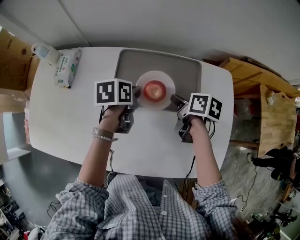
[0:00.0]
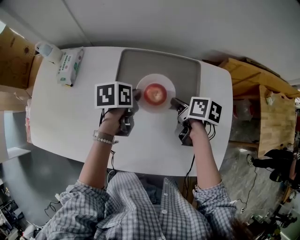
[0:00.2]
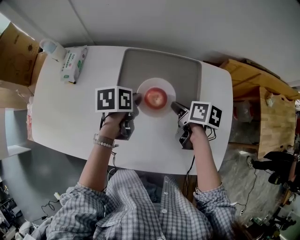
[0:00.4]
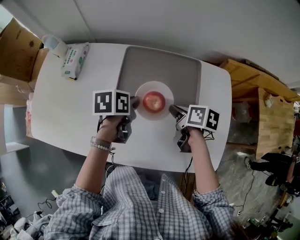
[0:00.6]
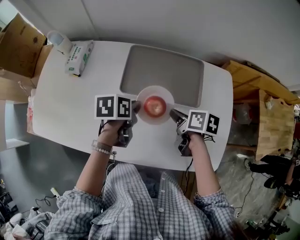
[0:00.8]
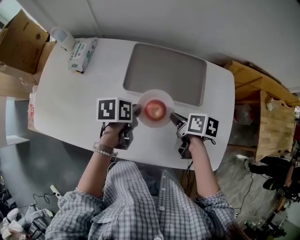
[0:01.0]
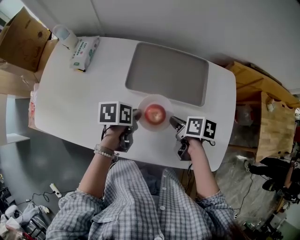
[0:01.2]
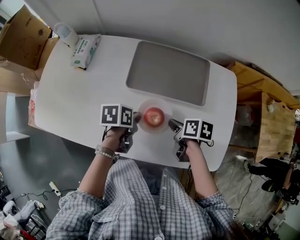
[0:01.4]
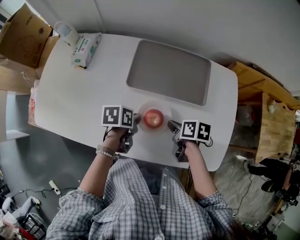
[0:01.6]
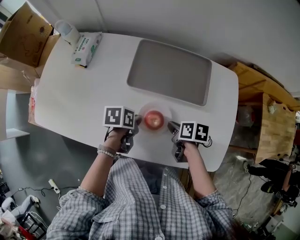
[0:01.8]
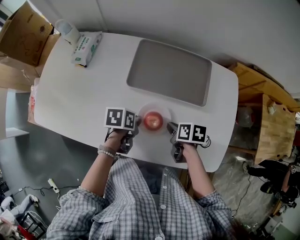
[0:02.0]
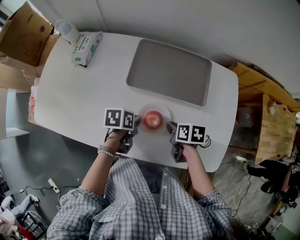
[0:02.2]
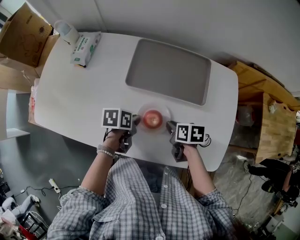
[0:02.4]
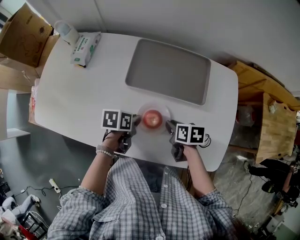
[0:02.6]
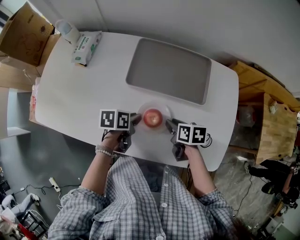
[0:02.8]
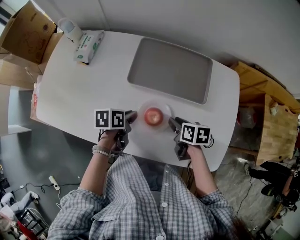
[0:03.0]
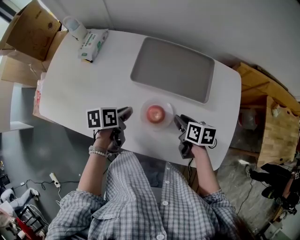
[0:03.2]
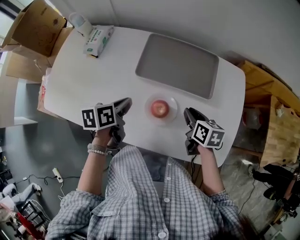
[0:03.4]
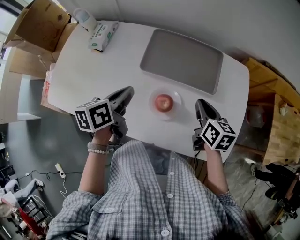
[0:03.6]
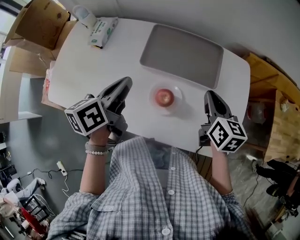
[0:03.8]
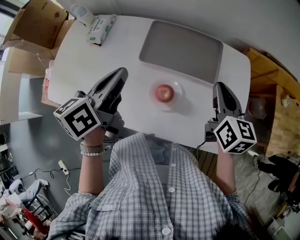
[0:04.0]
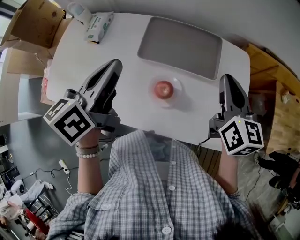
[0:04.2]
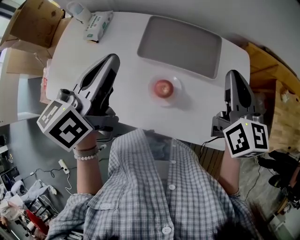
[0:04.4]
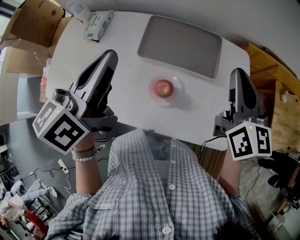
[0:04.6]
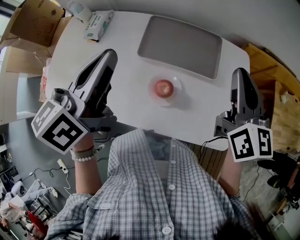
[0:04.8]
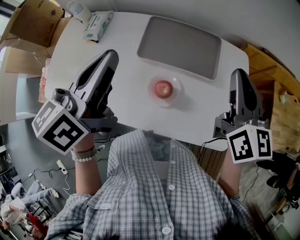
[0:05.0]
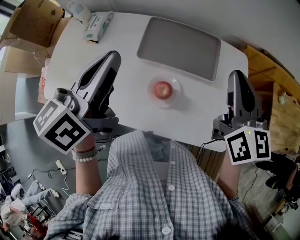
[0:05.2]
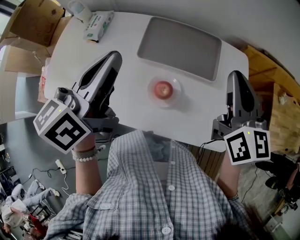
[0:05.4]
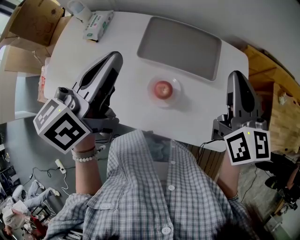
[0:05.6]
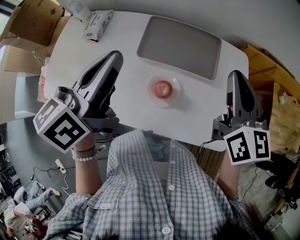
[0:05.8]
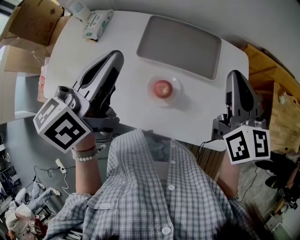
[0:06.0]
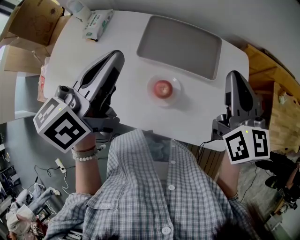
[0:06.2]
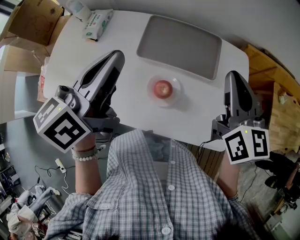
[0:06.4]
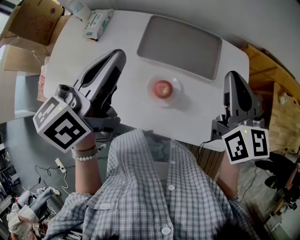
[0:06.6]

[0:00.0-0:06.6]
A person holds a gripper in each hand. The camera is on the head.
0:00.0 to 0:01.6: Both grippers travel together backward, approximately 15 cm.
0:01.6 to 0:03.2: The left gripper moves approximately 5 cm.
0:03.2 to 0:05.0: The two grippers go approximately 30 cm upward. The right gripper points its fingers roughly 40 degrees further upward; the left gripper tilts its fingers about 40 degrees upward.
0:05.0 to 0:06.6: There are only small adjustments of the grippers.

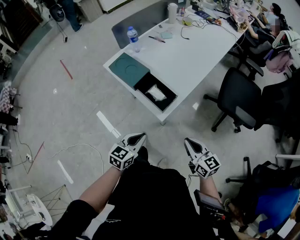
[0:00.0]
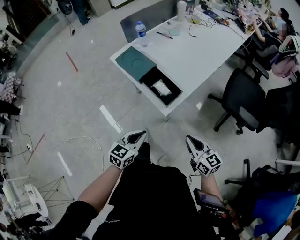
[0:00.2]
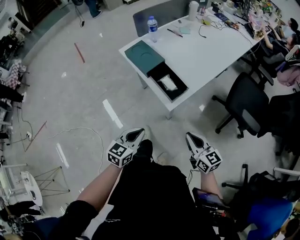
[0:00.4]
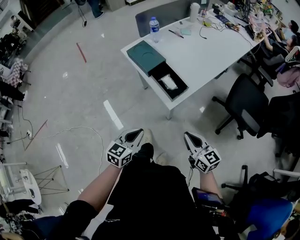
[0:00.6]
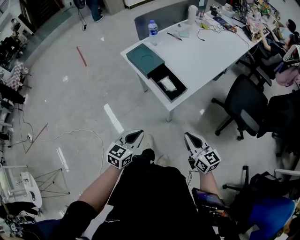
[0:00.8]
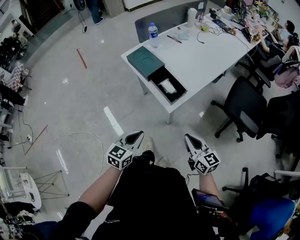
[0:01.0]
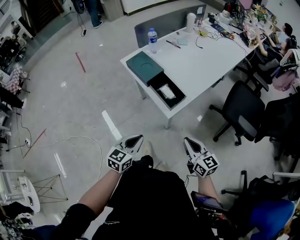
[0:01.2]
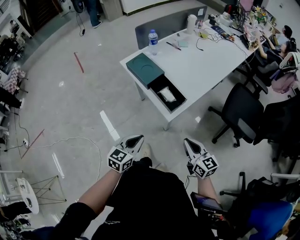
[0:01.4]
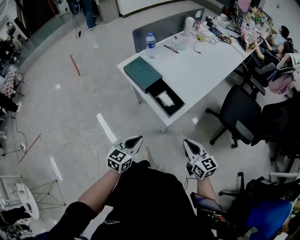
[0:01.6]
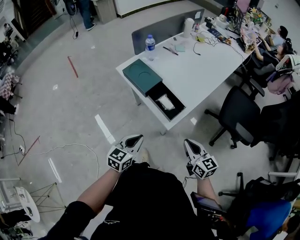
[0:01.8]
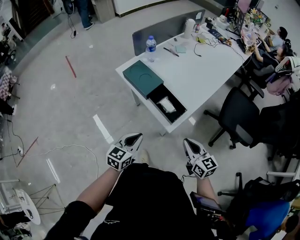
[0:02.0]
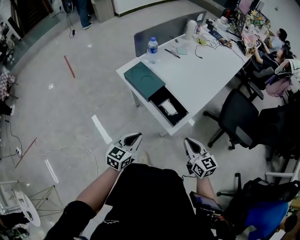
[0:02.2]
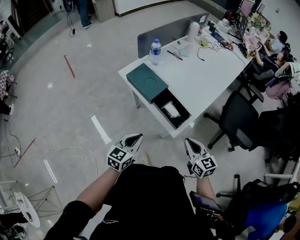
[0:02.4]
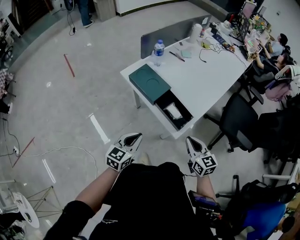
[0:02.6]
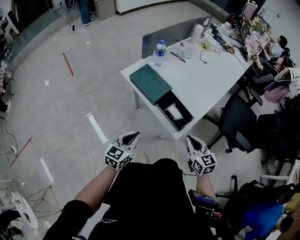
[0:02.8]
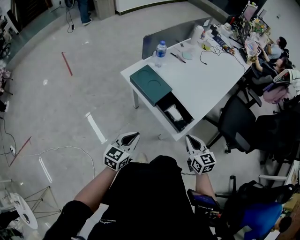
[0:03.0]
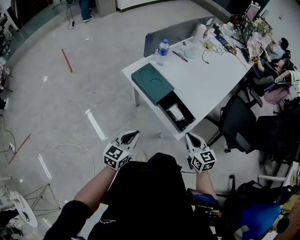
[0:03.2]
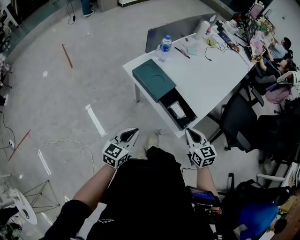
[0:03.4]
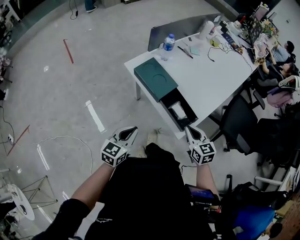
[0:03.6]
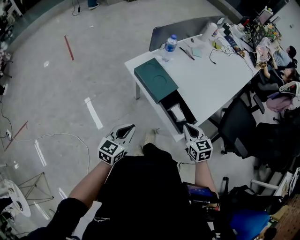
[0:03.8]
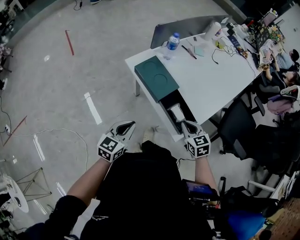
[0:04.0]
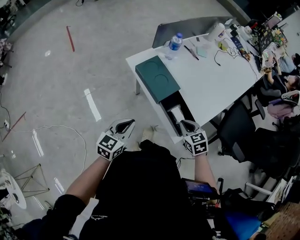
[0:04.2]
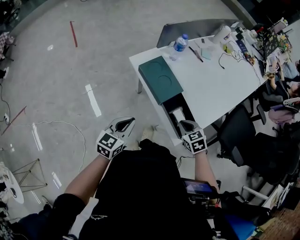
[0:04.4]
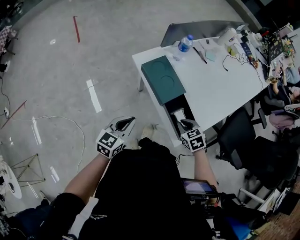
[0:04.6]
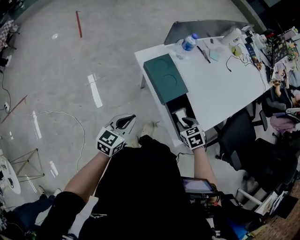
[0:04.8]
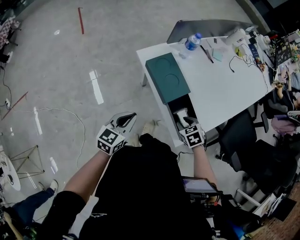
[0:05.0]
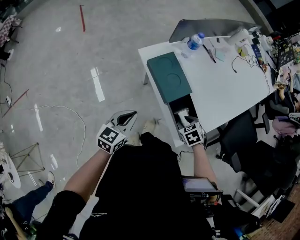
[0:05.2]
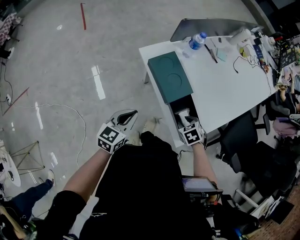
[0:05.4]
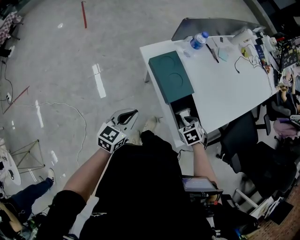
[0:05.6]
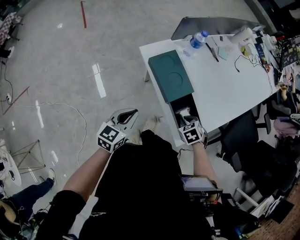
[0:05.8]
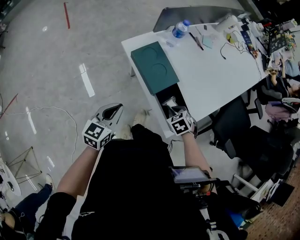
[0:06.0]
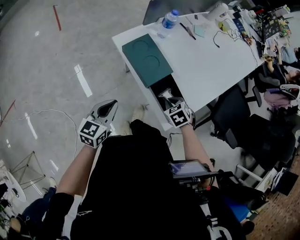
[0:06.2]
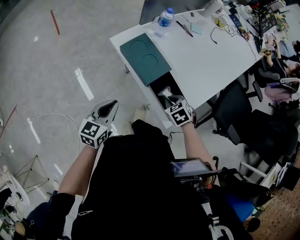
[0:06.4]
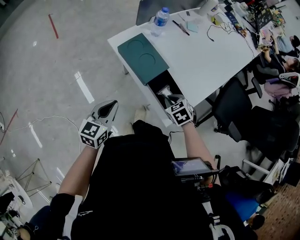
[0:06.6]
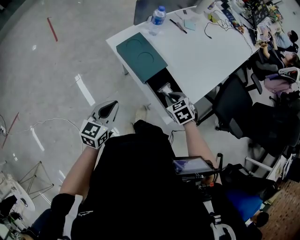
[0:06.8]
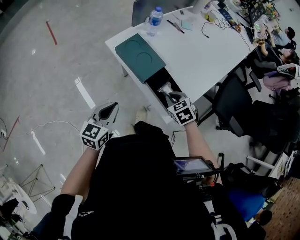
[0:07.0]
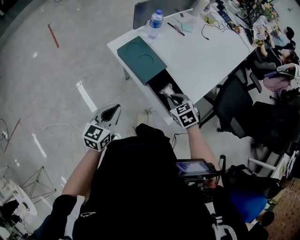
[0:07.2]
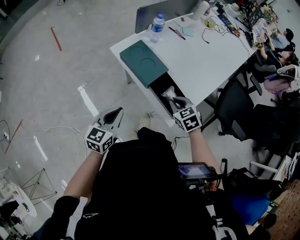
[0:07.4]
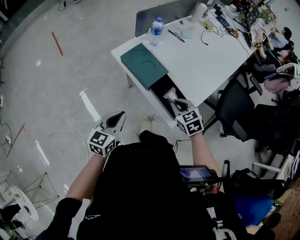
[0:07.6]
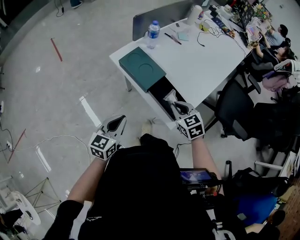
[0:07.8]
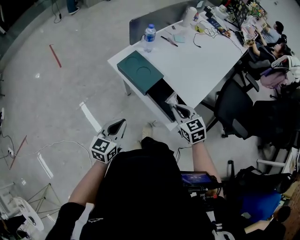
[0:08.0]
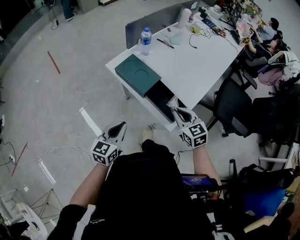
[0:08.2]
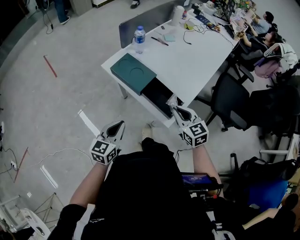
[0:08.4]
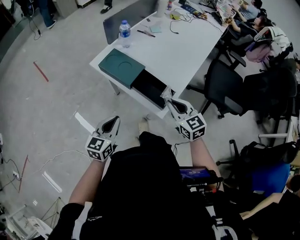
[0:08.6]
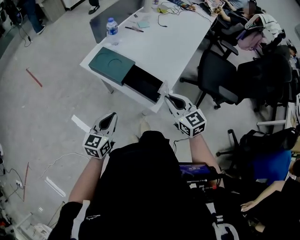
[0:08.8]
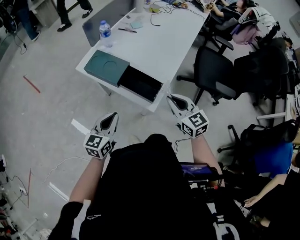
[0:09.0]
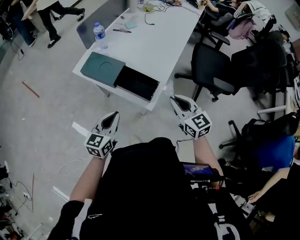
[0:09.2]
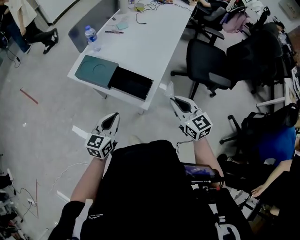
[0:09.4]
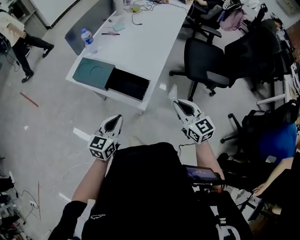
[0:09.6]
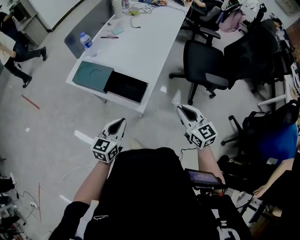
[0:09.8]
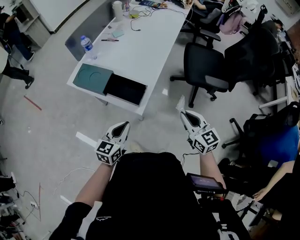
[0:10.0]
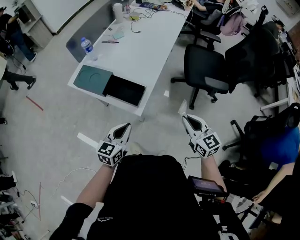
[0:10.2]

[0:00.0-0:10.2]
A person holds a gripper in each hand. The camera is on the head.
0:00.0 to 0:01.4: The left gripper ends up some 5 cm from where it was.
0:01.4 to 0:03.0: The two grippers go some 15 cm forward and to the left.
0:03.0 to 0:04.4: The left gripper shifts about 5 cm forward, while the right gripper travels forward and downward by some 15 cm, and changes its angle by about 40 degrees.
0:04.4 to 0:05.8: The right gripper heads downward, covering some 5 cm, swivels about 20 degrees, and opens, then closes once more.
0:05.8 to 0:07.2: The right gripper moves upward, about 5 cm, and turns by about 20 degrees.
0:07.2 to 0:08.8: The right gripper goes some 15 cm upward, backward and to the right, and points its fingers about 30 degrees further upward; the left gripper shifts by approximately 5 cm.
0:08.8 to 0:10.2: The right gripper goes some 20 cm to the right and backward. The left gripper moves to the right, some 15 cm.

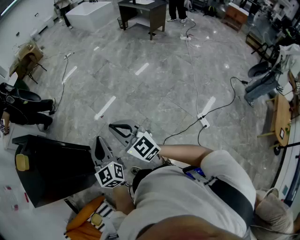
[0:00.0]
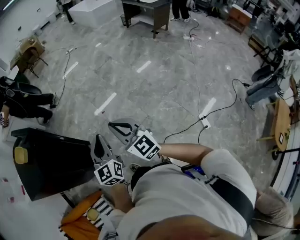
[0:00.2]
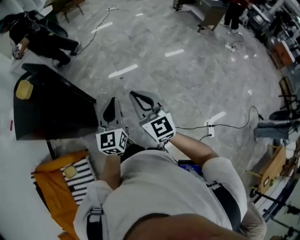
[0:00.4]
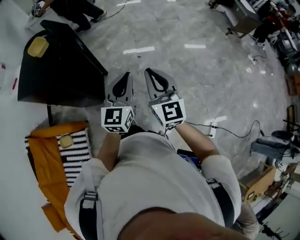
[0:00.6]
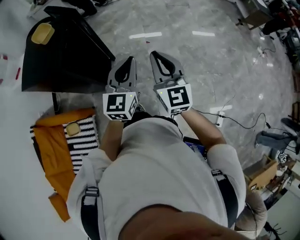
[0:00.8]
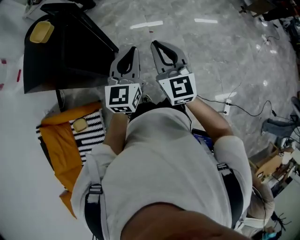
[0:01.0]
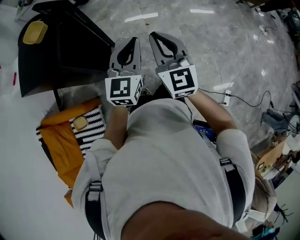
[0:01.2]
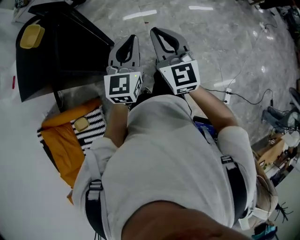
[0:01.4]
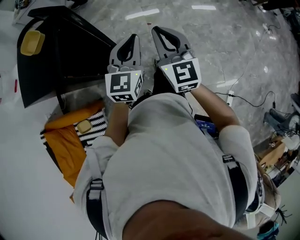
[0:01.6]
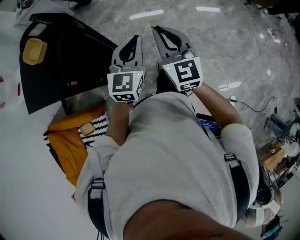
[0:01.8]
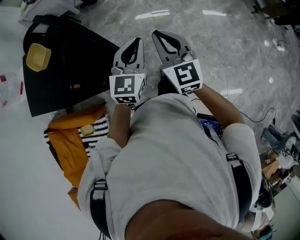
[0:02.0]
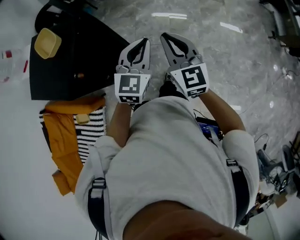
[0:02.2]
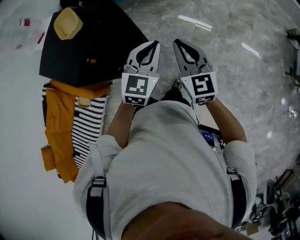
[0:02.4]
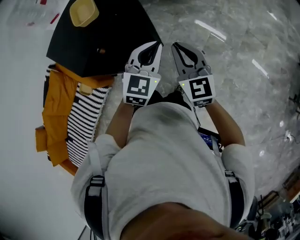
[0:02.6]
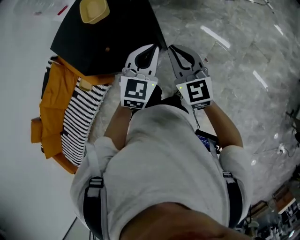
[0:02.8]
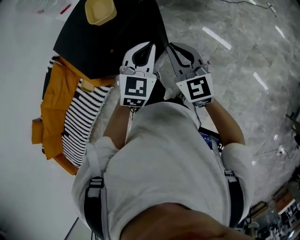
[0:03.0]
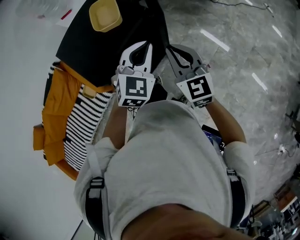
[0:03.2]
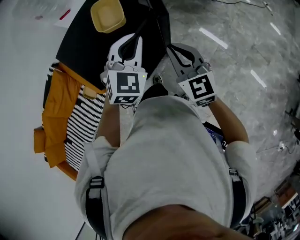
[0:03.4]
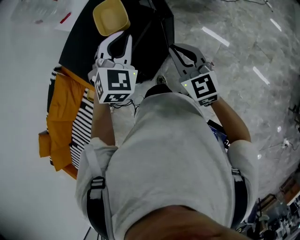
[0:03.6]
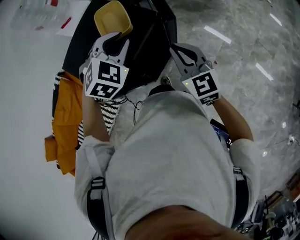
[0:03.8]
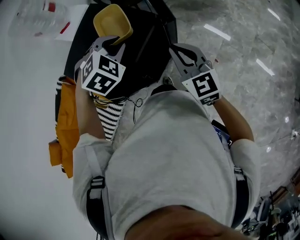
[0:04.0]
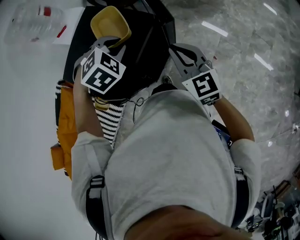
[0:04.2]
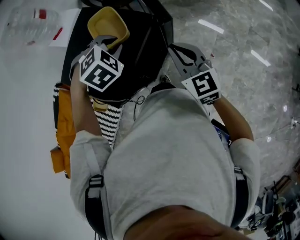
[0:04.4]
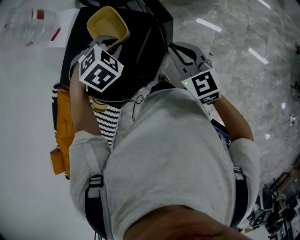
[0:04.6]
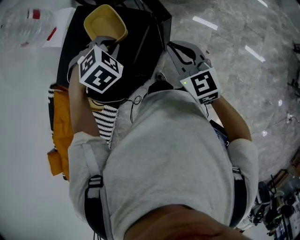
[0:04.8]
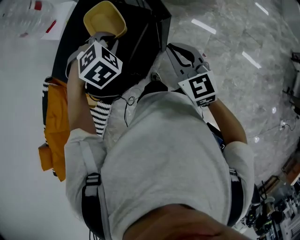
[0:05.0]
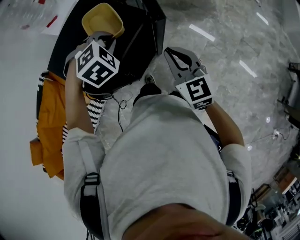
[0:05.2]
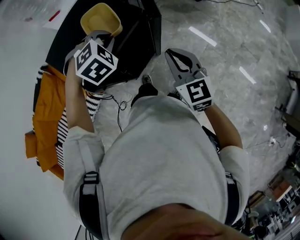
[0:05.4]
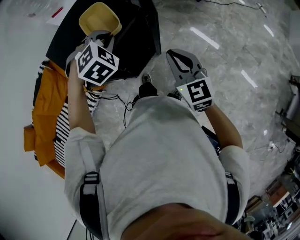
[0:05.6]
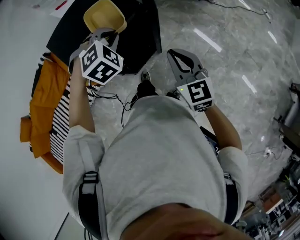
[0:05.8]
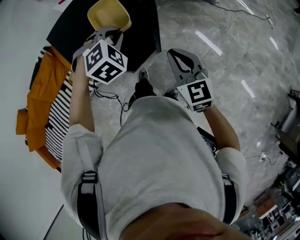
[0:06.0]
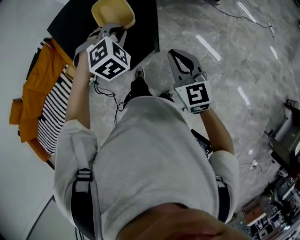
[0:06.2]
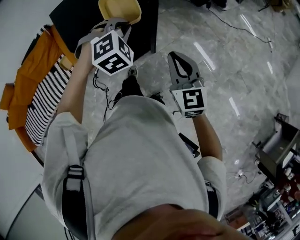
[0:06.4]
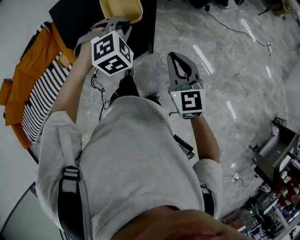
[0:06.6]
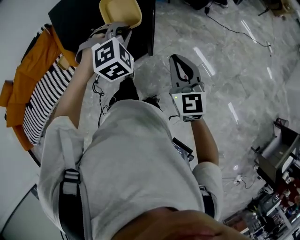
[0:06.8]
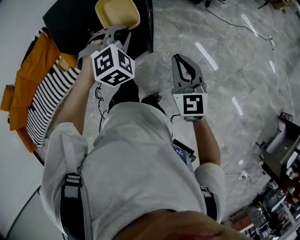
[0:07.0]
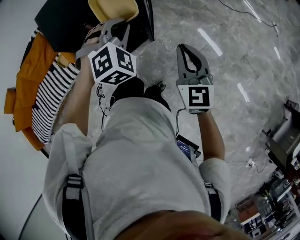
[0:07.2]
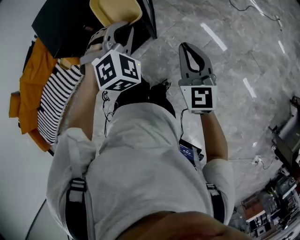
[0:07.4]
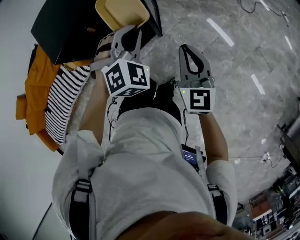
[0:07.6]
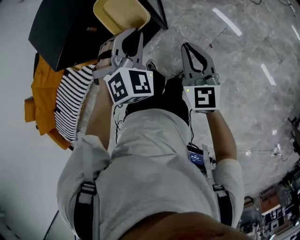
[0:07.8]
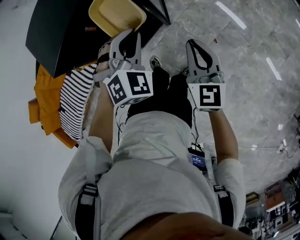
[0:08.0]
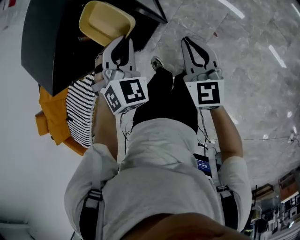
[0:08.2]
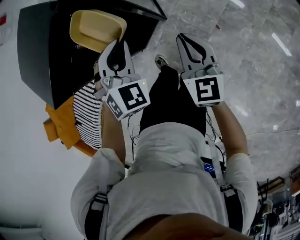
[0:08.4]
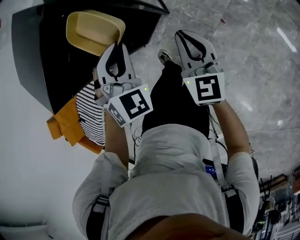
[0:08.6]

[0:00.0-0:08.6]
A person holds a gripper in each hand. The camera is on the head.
0:00.0 to 0:01.4: The grippers both shift to the left and forward by roughly 20 cm.
0:01.4 to 0:02.8: The right gripper shifts by roughly 30 cm, and changes its angle by some 50 degrees, while the left gripper ends up about 30 cm from where it was, and changes its angle by approximately 40 degrees.
0:02.8 to 0:04.4: The left gripper shifts some 30 cm to the left and forward, and tips its fingers downward by roughly 40 degrees, while the right gripper is displaced forward and to the left by approximately 15 cm.
0:04.4 to 0:05.8: The grippers both shift backward and to the right by roughly 10 cm.
0:05.8 to 0:07.2: Both grippers move to the right and backward, roughly 15 cm.
0:07.2 to 0:08.6: The grippers both shift downward by about 20 cm. The right gripper turns by approximately 20 degrees.
